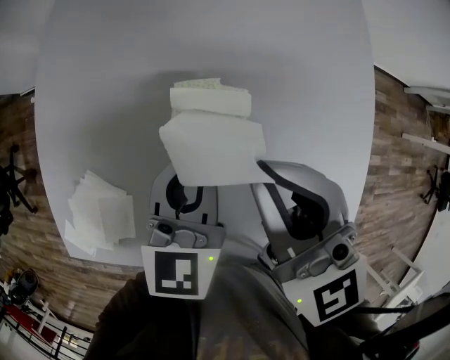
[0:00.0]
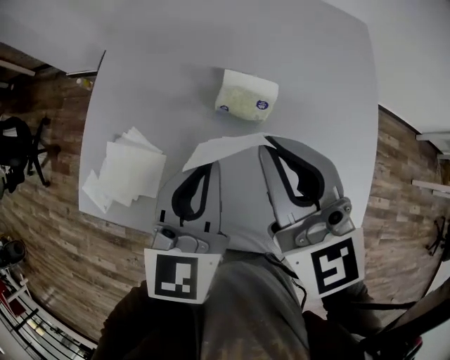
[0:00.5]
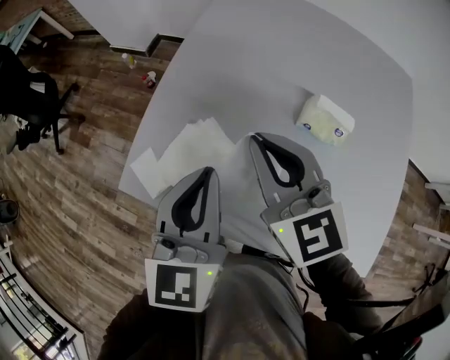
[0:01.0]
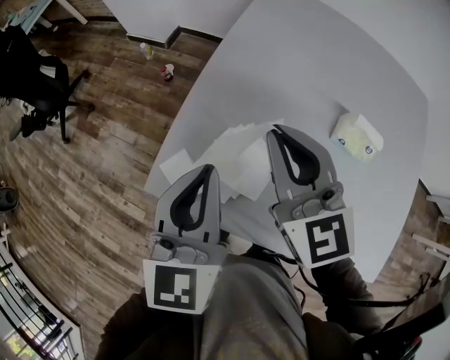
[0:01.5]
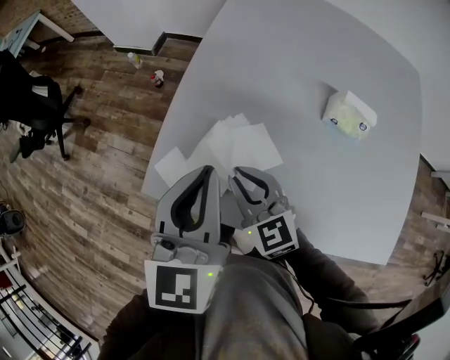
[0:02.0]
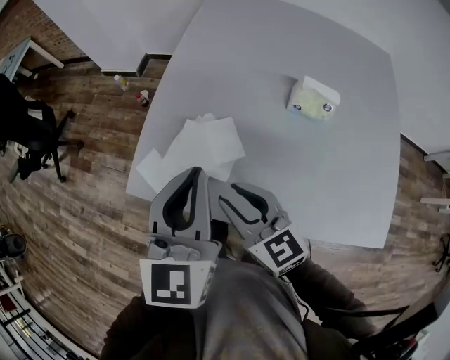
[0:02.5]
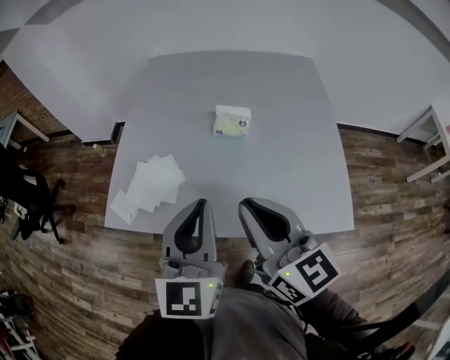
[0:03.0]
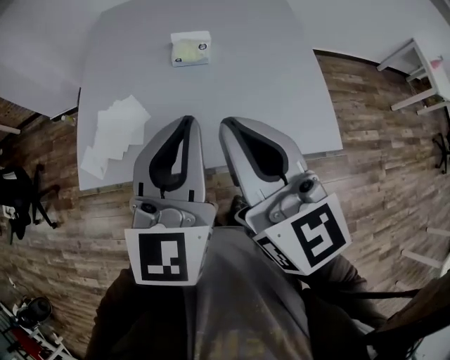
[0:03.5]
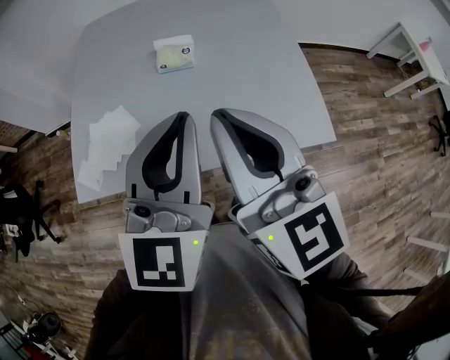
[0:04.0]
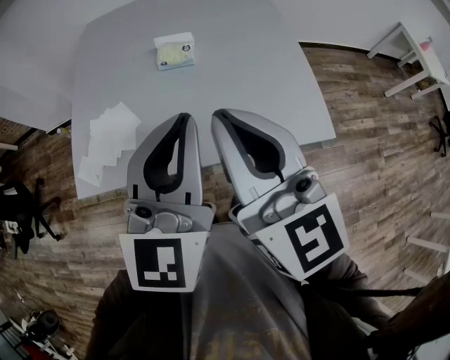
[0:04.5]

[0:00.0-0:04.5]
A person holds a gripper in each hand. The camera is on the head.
0:00.0 to 0:02.0: The two grippers travel together, to the left, about 40 cm. The left gripper changes its angle by some 20 degrees. Meanwhile the right gripper turns by roughly 30 degrees.
0:02.0 to 0:04.5: The right gripper ends up about 50 cm from where it was, changes its angle by some 50 degrees, and opens and closes again; the left gripper moves roughly 40 cm, and swivels roughly 40 degrees.

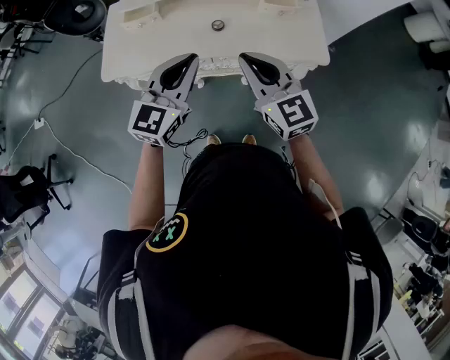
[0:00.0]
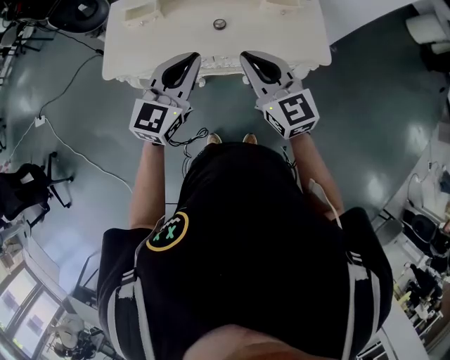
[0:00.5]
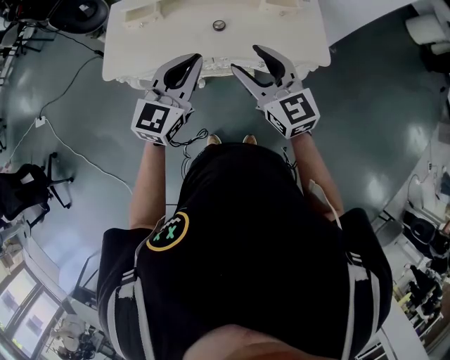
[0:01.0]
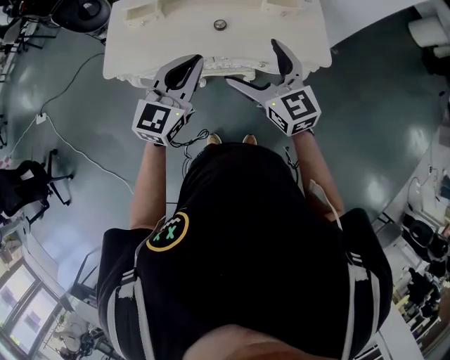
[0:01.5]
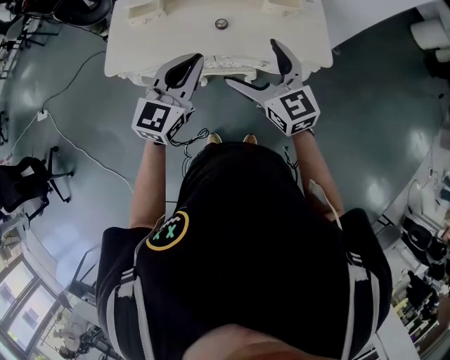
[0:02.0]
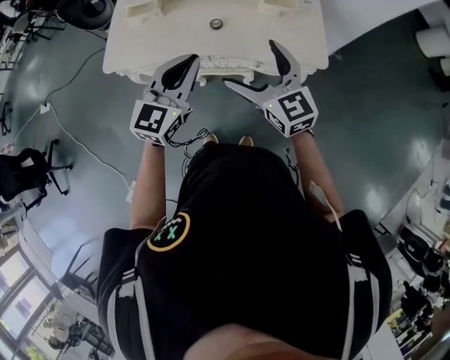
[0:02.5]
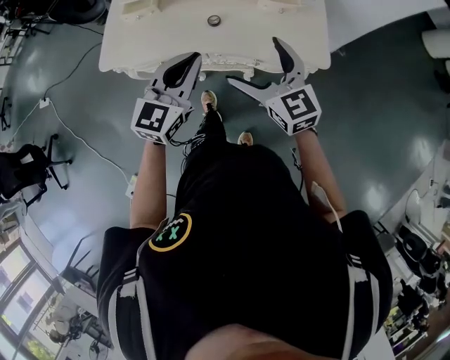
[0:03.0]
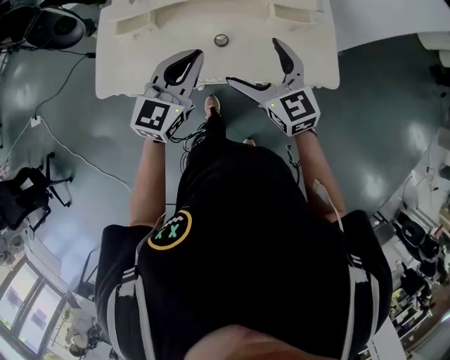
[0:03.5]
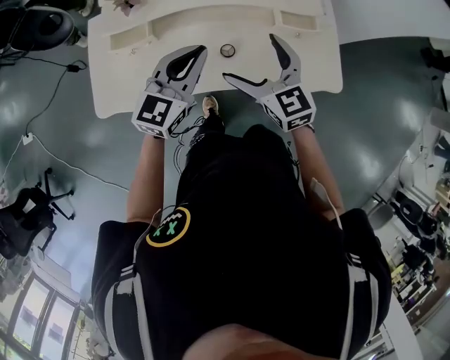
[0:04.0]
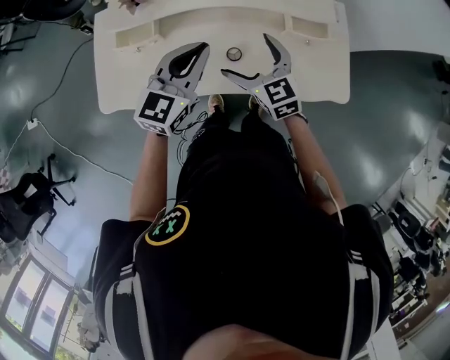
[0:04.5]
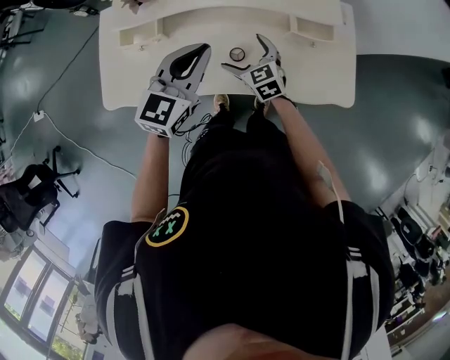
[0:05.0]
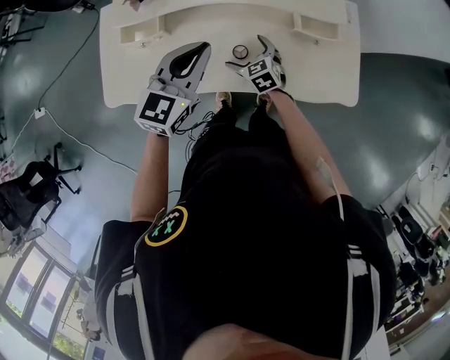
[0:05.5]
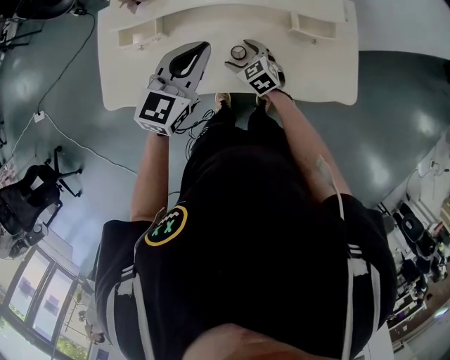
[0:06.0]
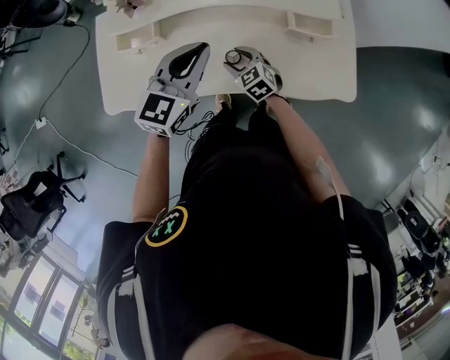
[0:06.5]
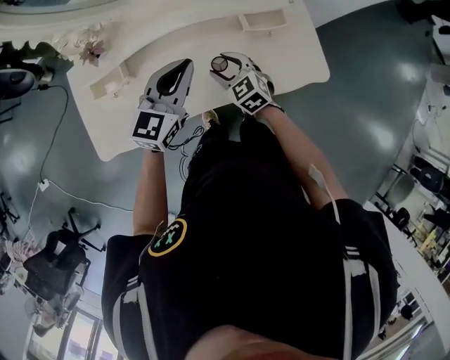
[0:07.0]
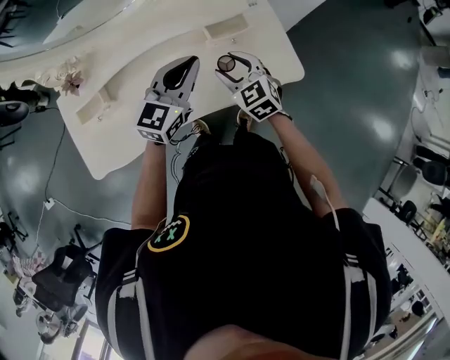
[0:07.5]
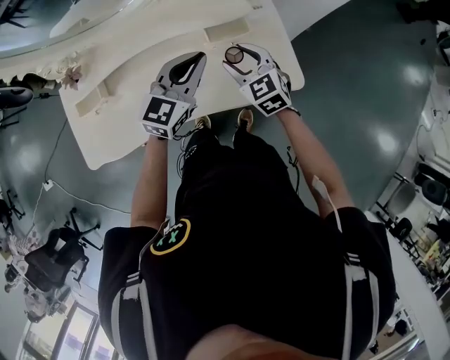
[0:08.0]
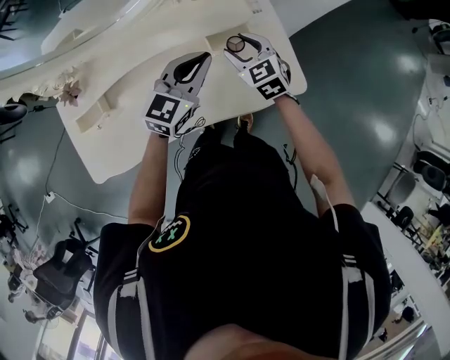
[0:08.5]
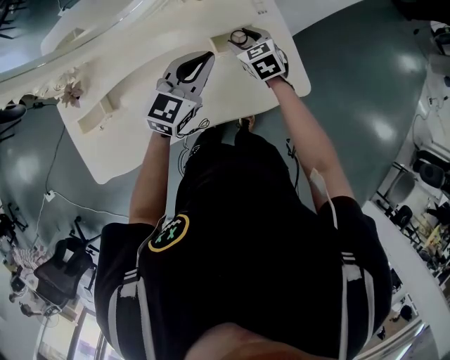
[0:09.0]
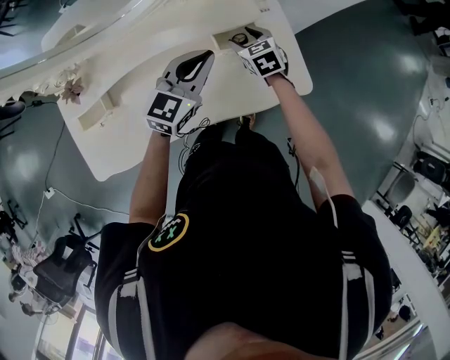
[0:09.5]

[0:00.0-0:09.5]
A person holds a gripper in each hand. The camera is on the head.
0:00.0 to 0:02.0: The right gripper opens.
0:02.0 to 0:04.0: Both grippers travel together forward, roughly 25 cm.
0:04.0 to 0:05.5: The right gripper moves downward, roughly 25 cm, and swivels some 20 degrees.
0:05.5 to 0:07.5: The right gripper is displaced to the right and upward by roughly 25 cm, and closes; the left gripper moves to the right, roughly 20 cm, and rotates about 20 degrees.
0:07.5 to 0:09.5: The right gripper shifts some 20 cm forward and downward; the left gripper shifts roughly 5 cm forward.

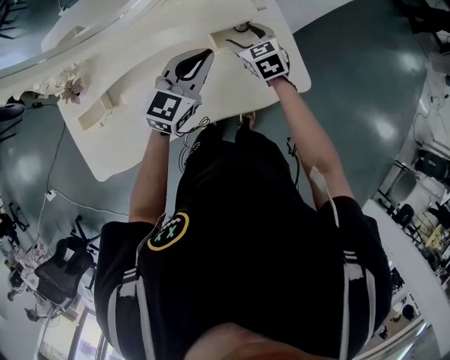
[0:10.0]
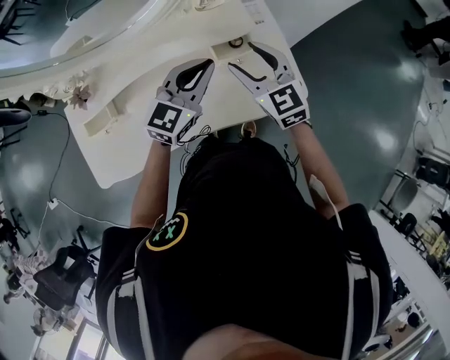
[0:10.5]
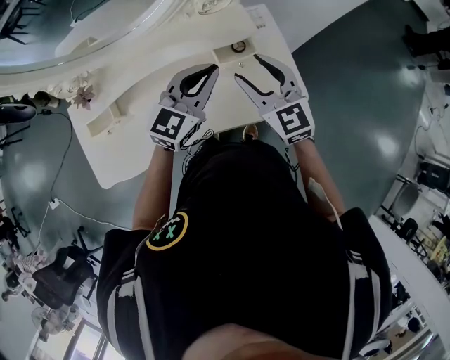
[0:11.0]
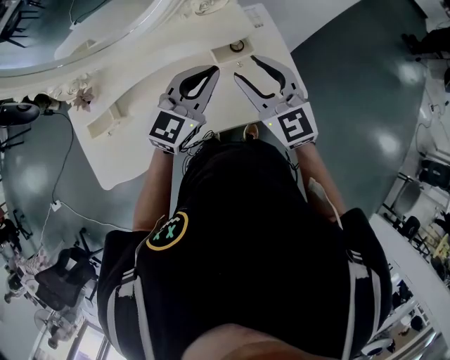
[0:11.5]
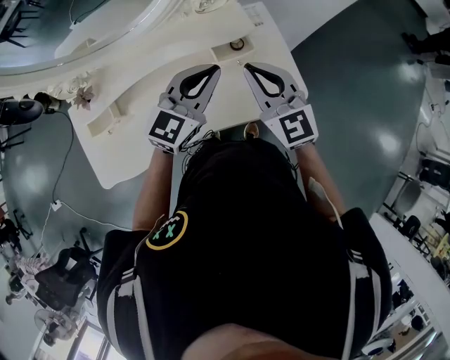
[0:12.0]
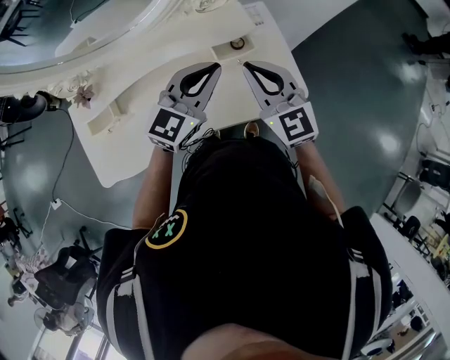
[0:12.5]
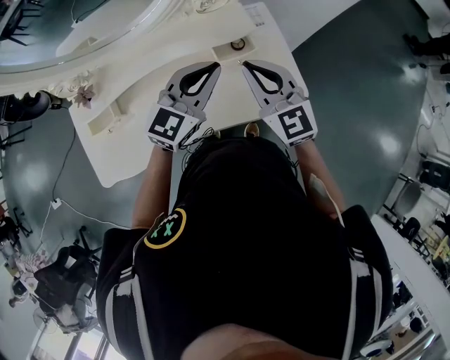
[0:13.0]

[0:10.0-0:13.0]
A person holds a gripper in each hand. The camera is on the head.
0:10.0 to 0:11.5: The left gripper goes roughly 5 cm upward. The right gripper shifts about 25 cm upward and backward, and turns by roughly 30 degrees.
0:11.5 to 0:13.0: The grippers make only small movements.

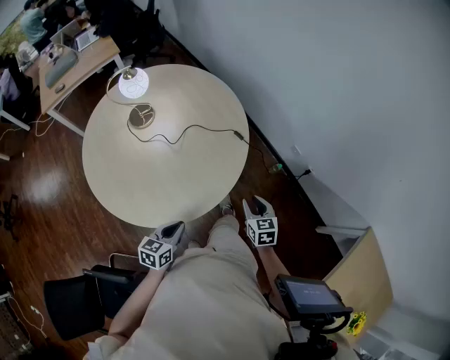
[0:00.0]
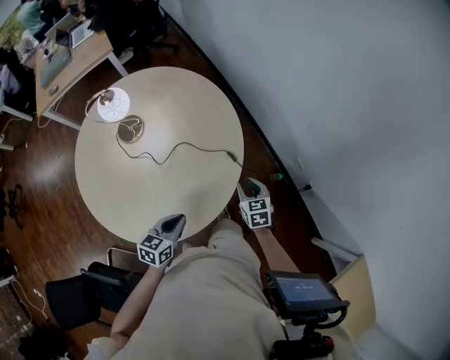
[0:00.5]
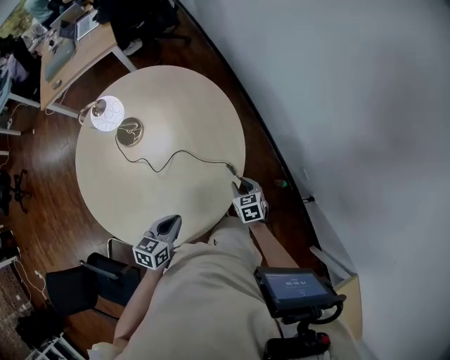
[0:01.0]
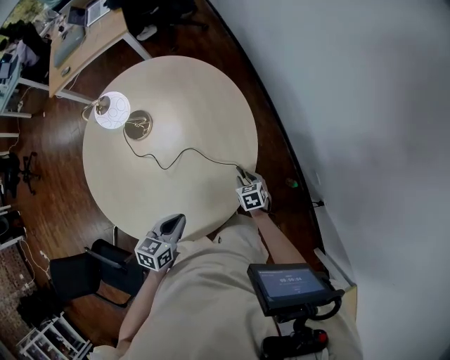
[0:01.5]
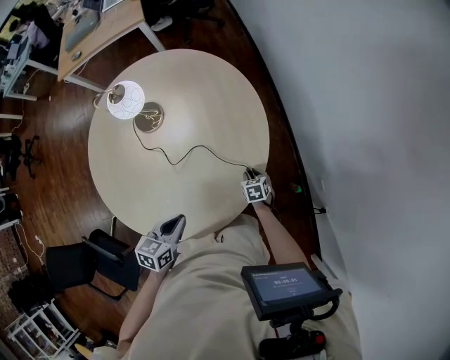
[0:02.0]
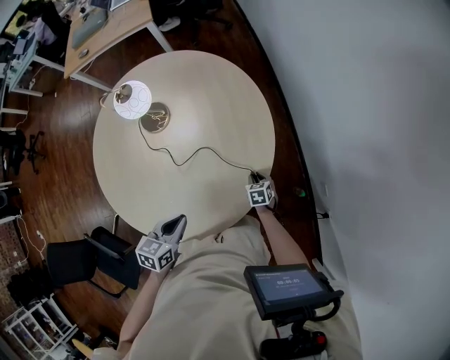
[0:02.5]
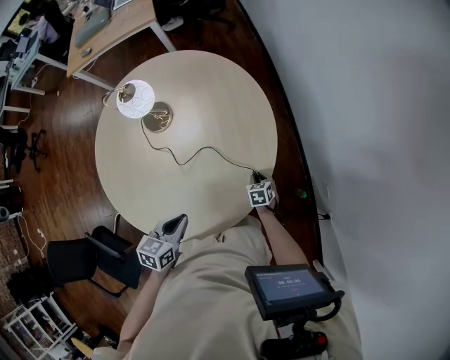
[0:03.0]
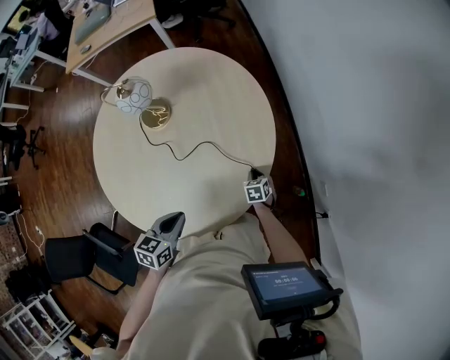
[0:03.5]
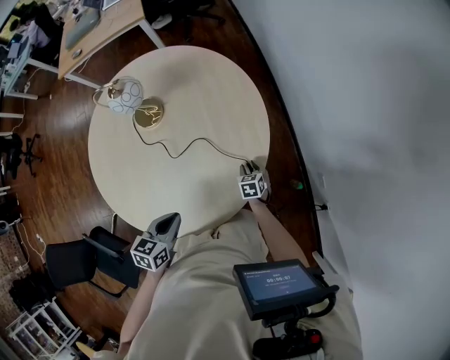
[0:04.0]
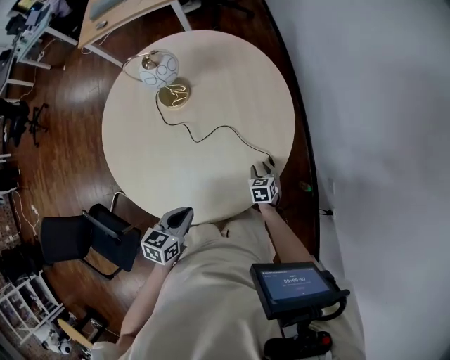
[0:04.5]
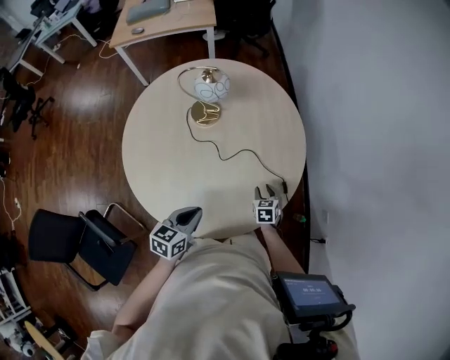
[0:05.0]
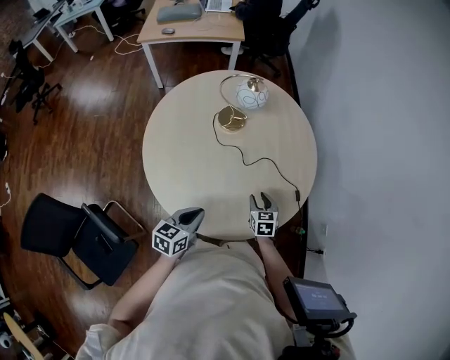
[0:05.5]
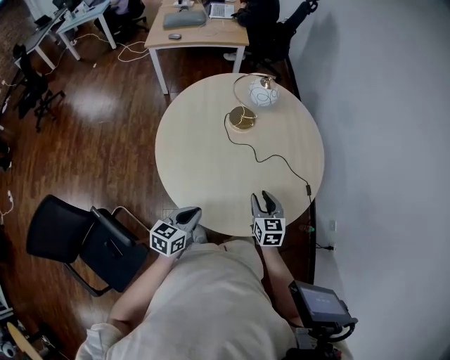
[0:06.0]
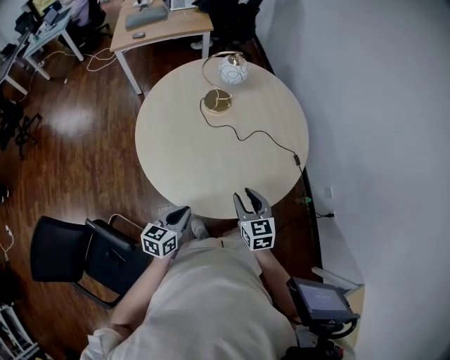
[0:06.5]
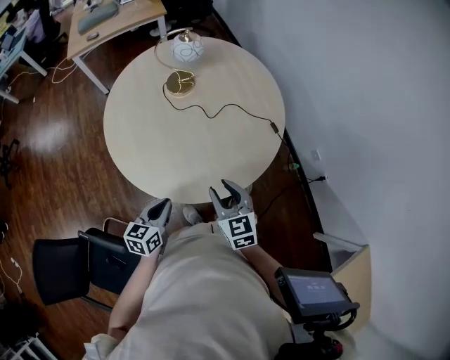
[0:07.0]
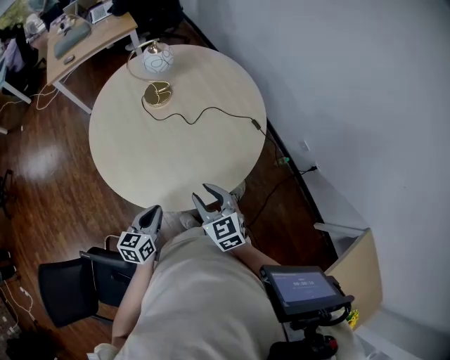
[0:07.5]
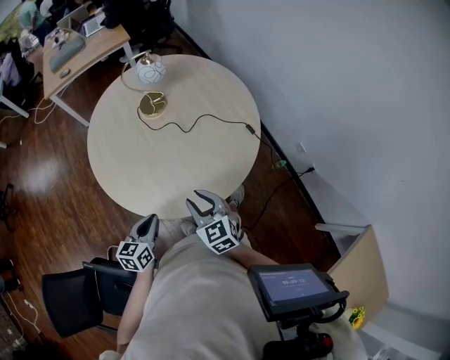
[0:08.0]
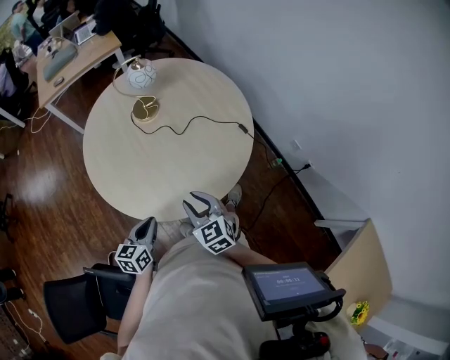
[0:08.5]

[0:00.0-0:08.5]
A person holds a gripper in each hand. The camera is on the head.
0:00.0 to 0:02.0: The left gripper moves some 25 cm, and rotates some 20 degrees. The right gripper changes place by approximately 40 cm, and rotates approximately 30 degrees.
0:02.0 to 0:04.0: The grippers stay close to where they were, moving slightly.
0:04.0 to 0:06.5: The left gripper heads to the left and backward, covering some 30 cm, while the right gripper shifts some 50 cm to the left, upward and backward, and turns by roughly 30 degrees.
0:06.5 to 0:08.5: The grippers stay close to where they were, moving slightly.

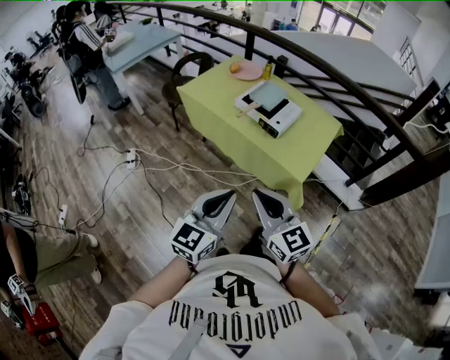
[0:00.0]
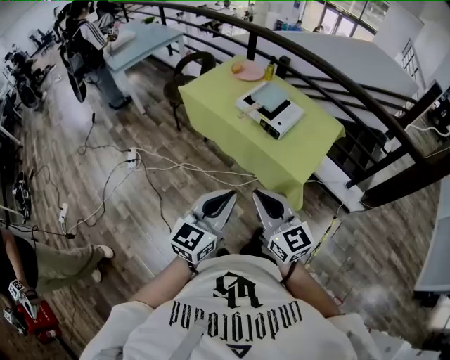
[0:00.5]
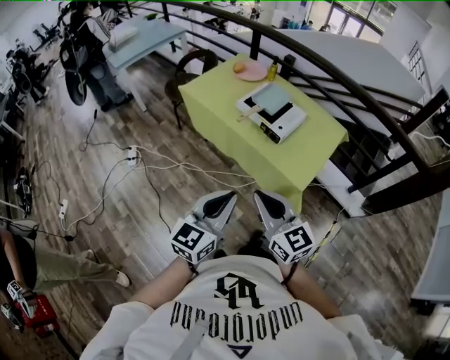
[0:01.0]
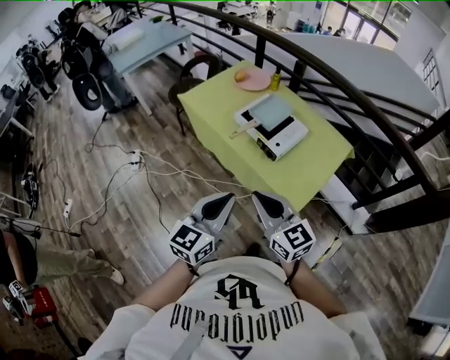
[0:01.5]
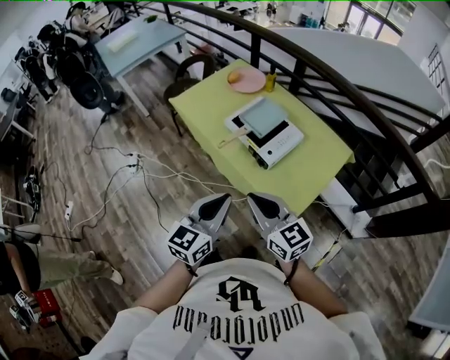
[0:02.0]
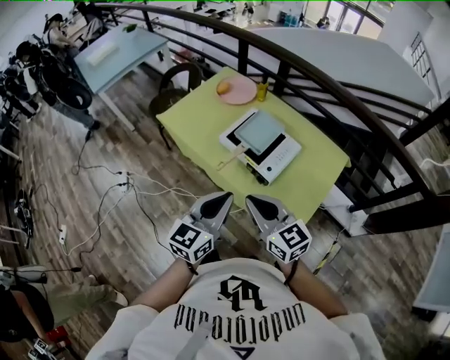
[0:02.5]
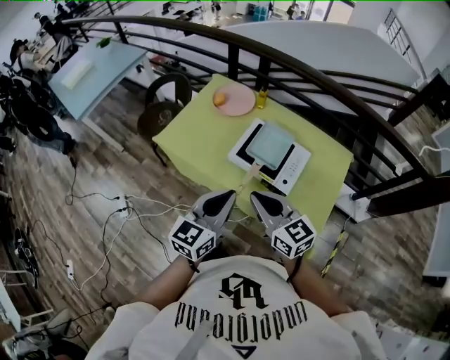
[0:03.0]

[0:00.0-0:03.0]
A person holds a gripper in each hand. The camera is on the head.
0:00.0 to 0:01.5: Both grippers move forward and to the right, some 15 cm.
0:01.5 to 0:03.0: The grippers both shift forward by about 30 cm.
